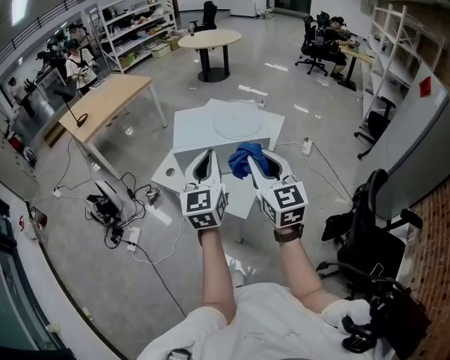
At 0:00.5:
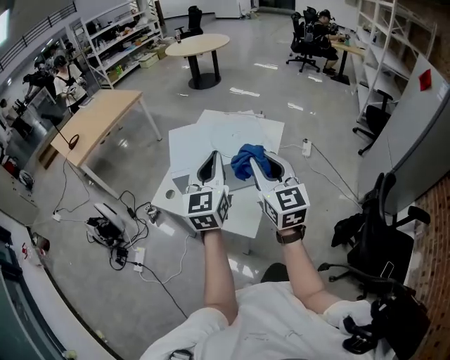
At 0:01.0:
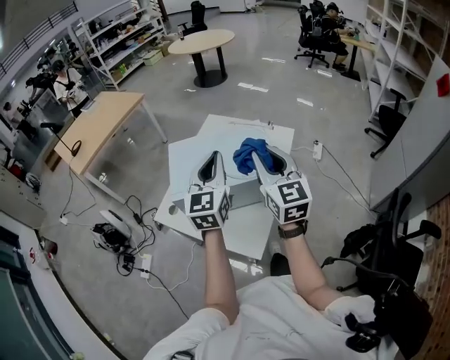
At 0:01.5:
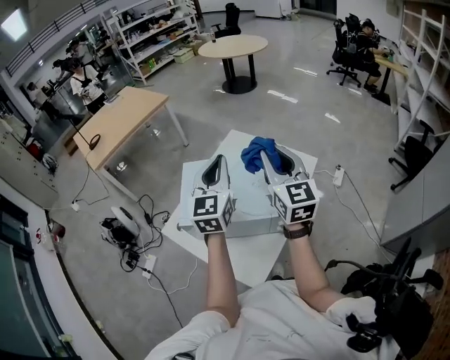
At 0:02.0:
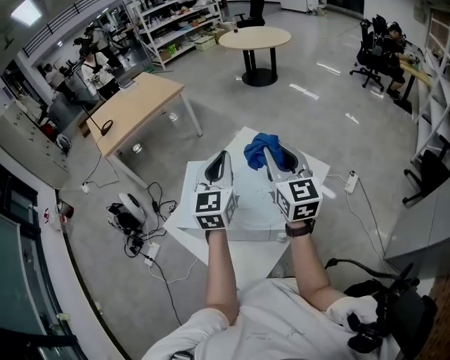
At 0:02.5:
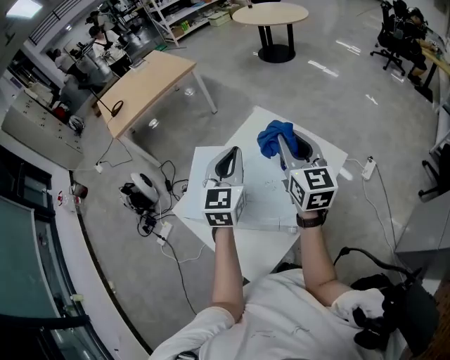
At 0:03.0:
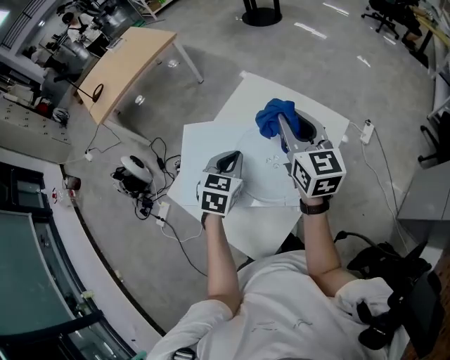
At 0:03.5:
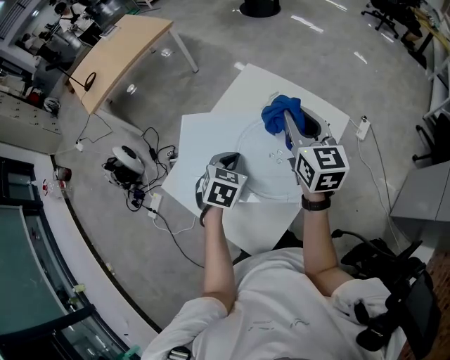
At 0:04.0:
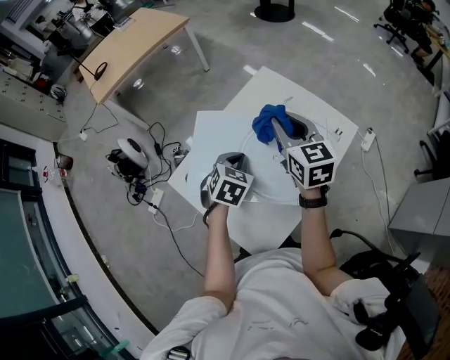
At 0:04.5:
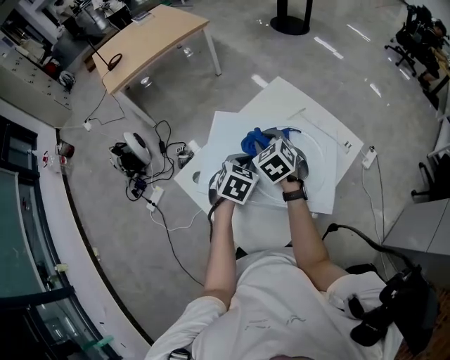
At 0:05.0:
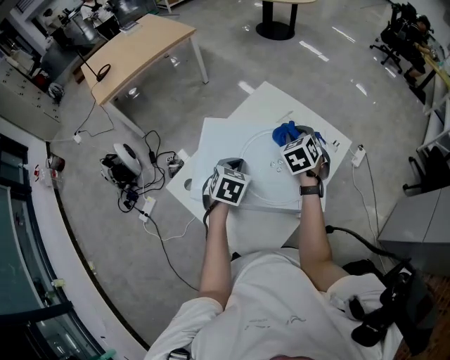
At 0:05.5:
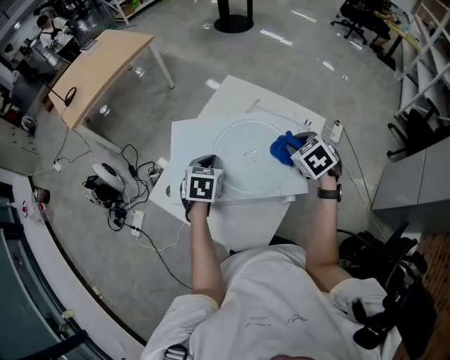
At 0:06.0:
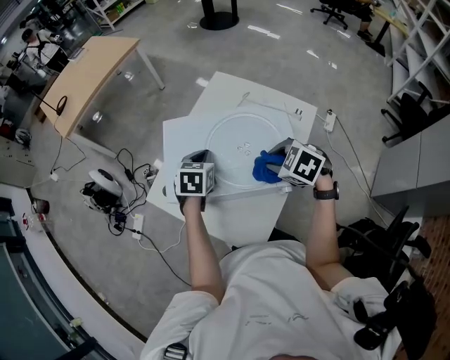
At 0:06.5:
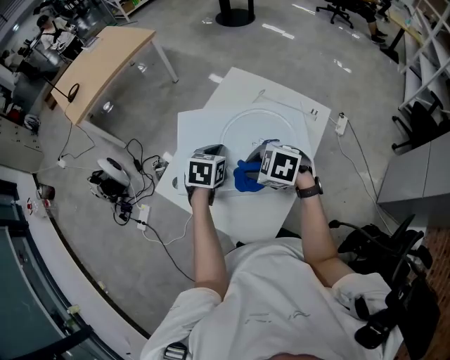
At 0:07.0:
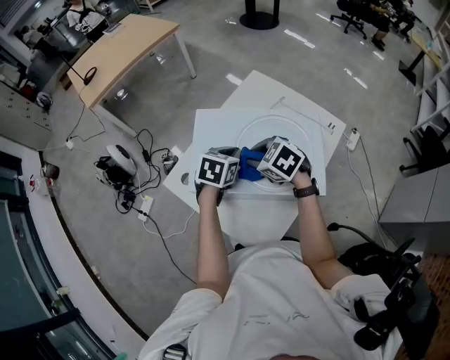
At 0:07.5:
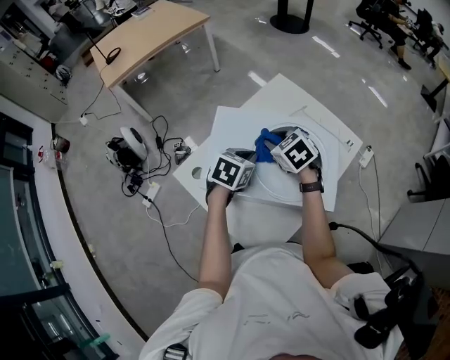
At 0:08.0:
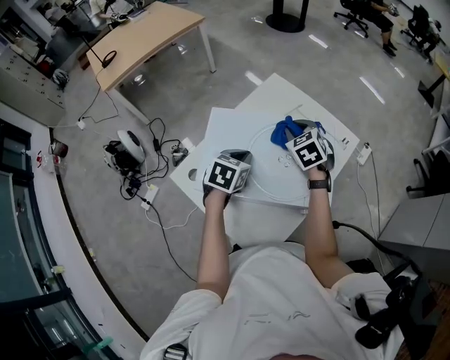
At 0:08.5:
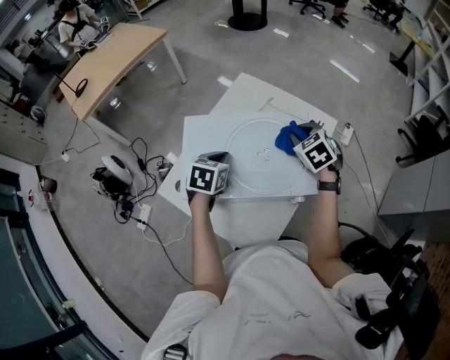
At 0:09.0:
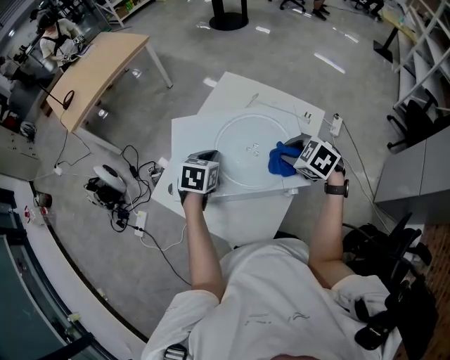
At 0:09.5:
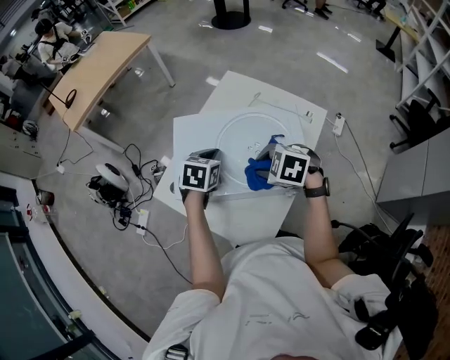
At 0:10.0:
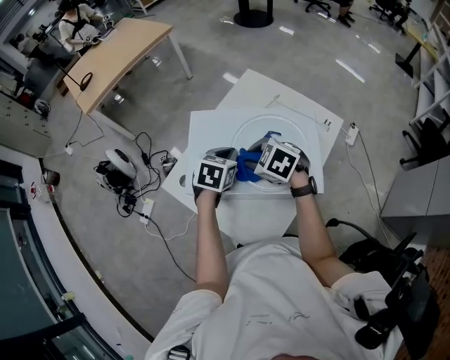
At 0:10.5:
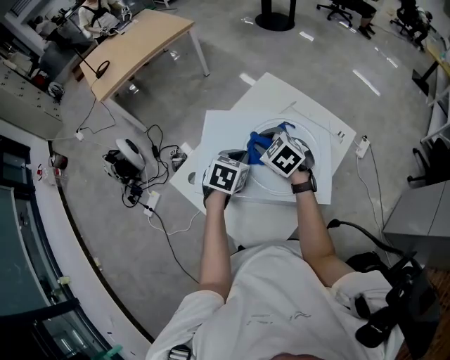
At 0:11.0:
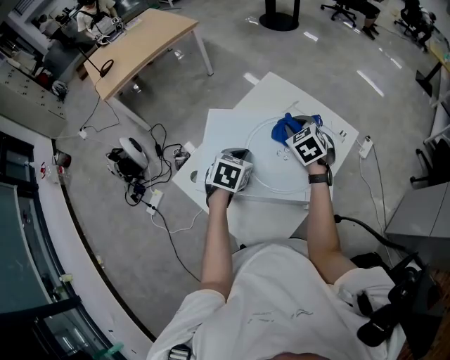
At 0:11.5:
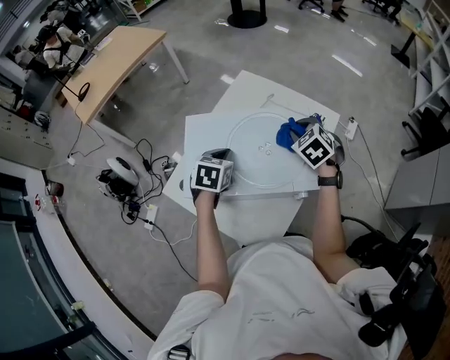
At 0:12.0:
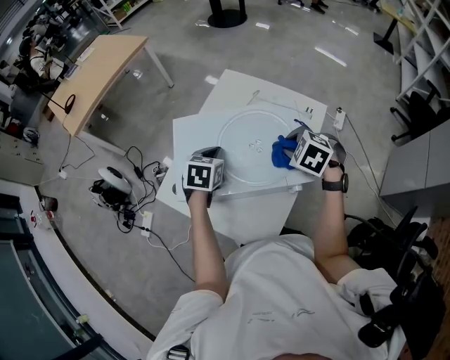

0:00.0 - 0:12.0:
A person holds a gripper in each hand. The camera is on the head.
0:00.0 - 0:02.0: The two grippers go approximately 35 cm forward.
0:02.0 - 0:04.0: The right gripper shifts roughly 15 cm downward, to the left and forward, and rotates approximately 20 degrees. The left gripper moves downward, roughly 25 cm, and angles its fingers downward, by about 50 degrees.
0:04.0 - 0:06.0: The right gripper moves left and right over approximately 20 cm, changing direction 2 times, and tilts its fingers roughly 40 degrees downward.
0:06.0 - 0:08.0: The right gripper shifts by approximately 20 cm, and swivels approximately 30 degrees.
0:08.0 - 0:10.0: The right gripper ends up some 15 cm from where it was, and swivels about 30 degrees.
0:10.0 - 0:12.0: The right gripper is displaced to the right by some 15 cm, and changes its angle by roughly 20 degrees.

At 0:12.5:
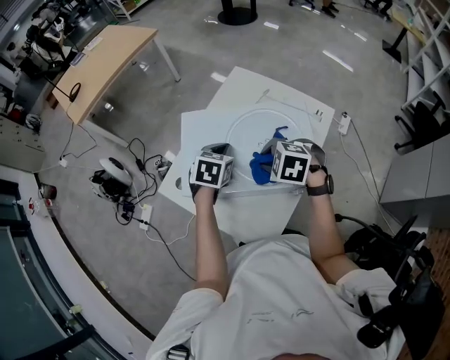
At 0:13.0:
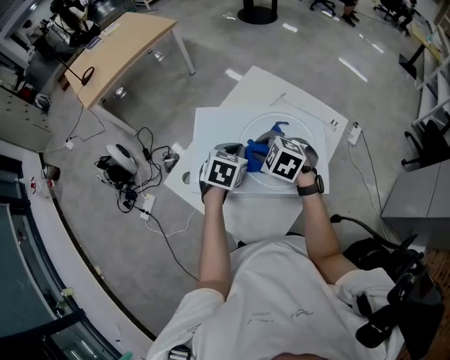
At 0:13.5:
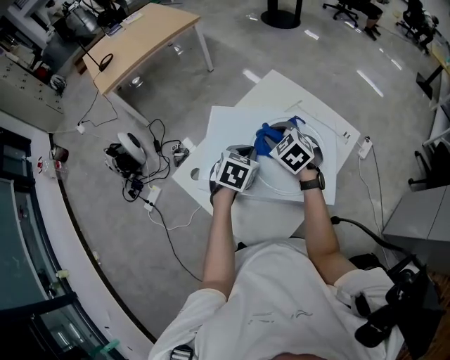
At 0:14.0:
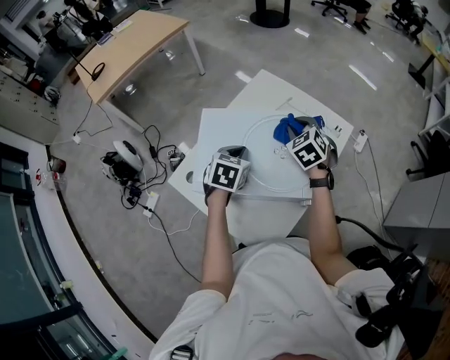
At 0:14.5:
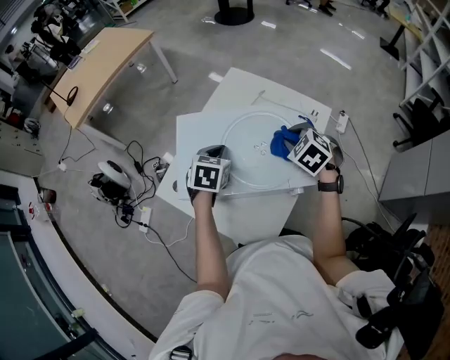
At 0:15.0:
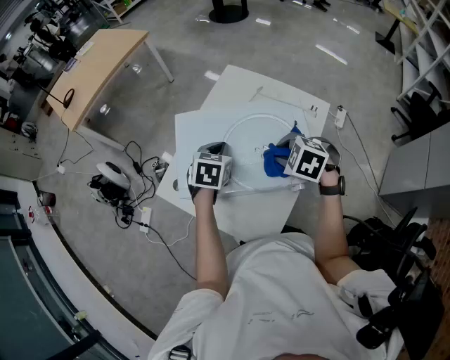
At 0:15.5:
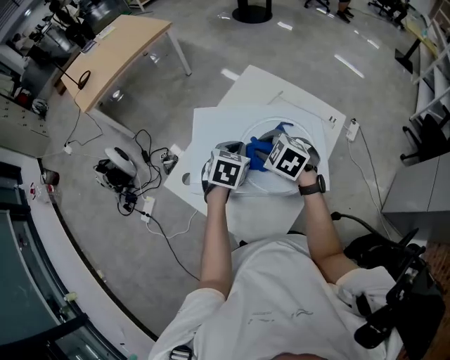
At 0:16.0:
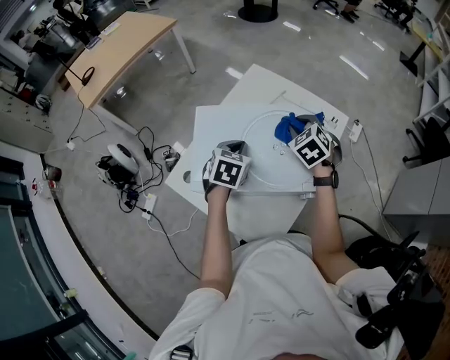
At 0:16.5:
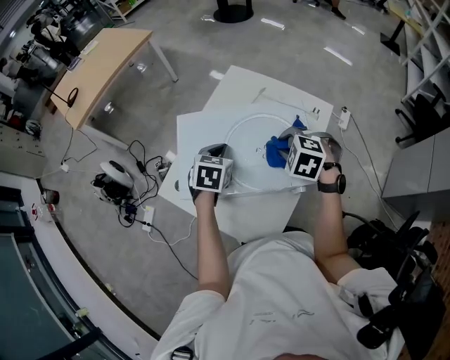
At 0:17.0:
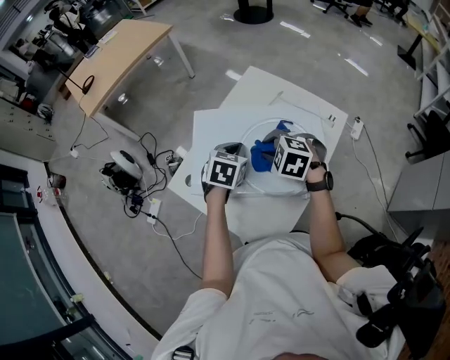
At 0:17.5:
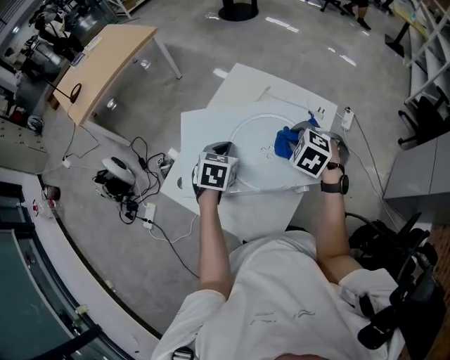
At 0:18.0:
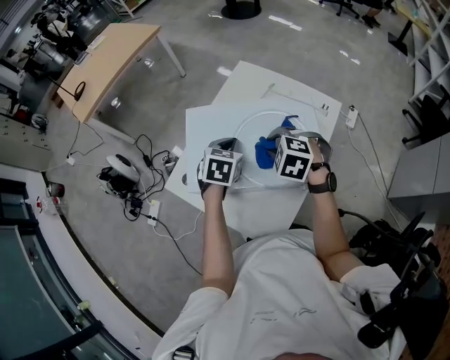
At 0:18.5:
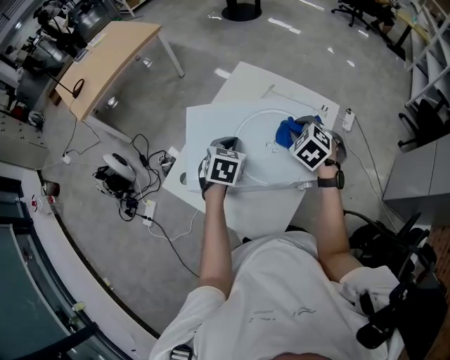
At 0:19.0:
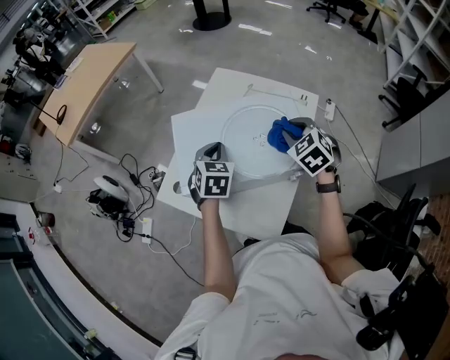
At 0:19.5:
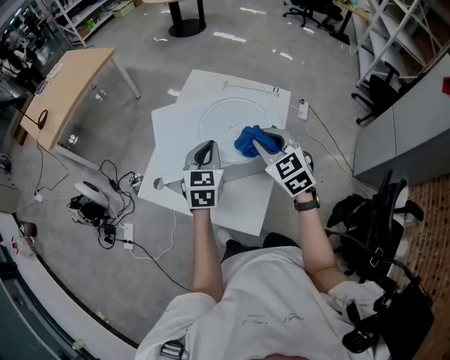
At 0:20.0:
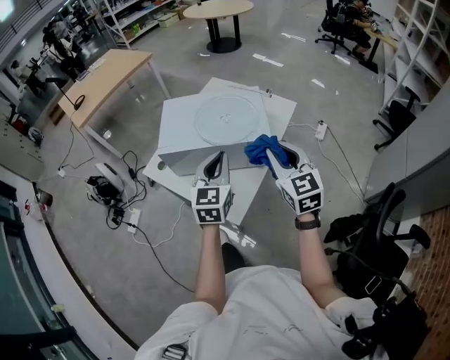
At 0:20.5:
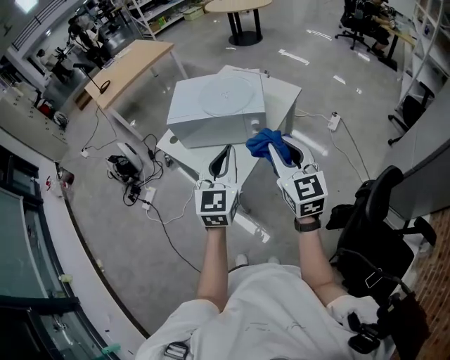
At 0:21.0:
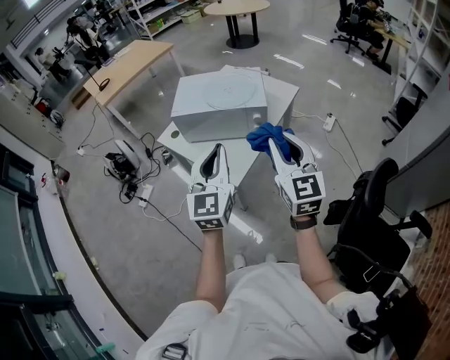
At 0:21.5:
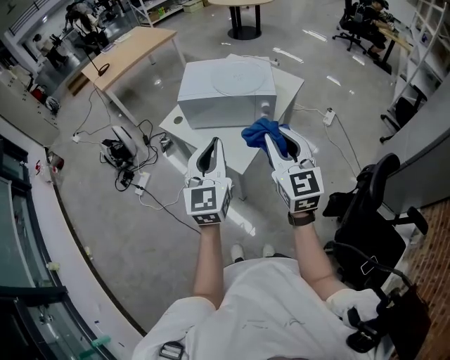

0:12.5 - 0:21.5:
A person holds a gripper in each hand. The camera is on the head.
0:12.5 - 0:14.5: The right gripper moves to the right and forward, some 15 cm, and swivels roughly 30 degrees.
0:14.5 - 0:17.0: The right gripper goes left and right, roughly 15 cm each way, reversing 2 times, and turns by about 30 degrees.
0:17.0 - 0:19.5: The right gripper swings left and right, about 15 cm each way, with 3 reversals, and rotates some 50 degrees. The left gripper goes about 10 cm backward and upward, and turns by roughly 20 degrees.
0:19.5 - 0:21.5: The grippers both shift backward by some 35 cm. The right gripper turns by some 30 degrees. Meanwhile the left gripper rotates about 30 degrees.

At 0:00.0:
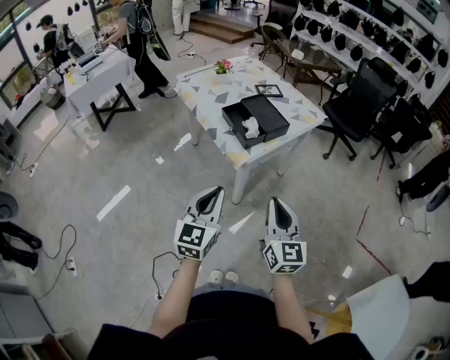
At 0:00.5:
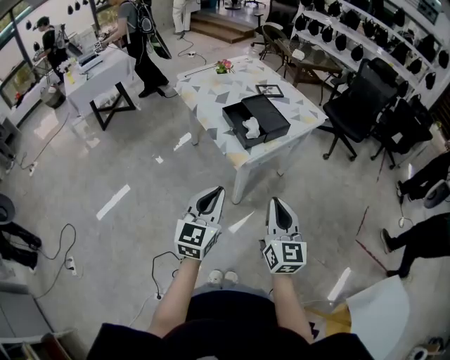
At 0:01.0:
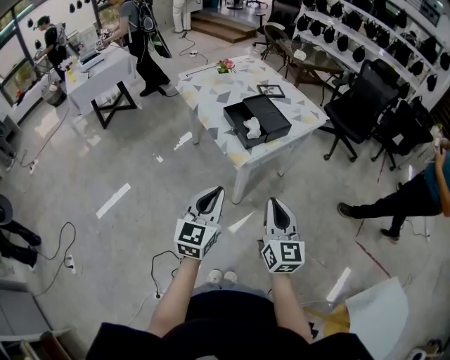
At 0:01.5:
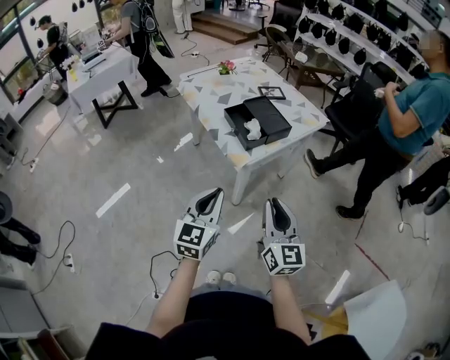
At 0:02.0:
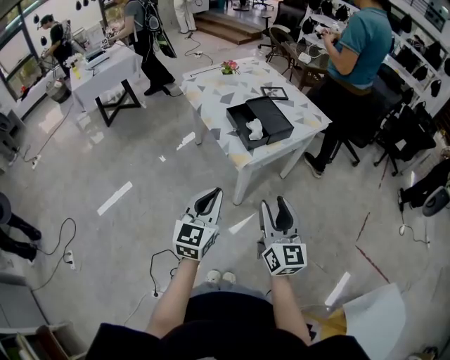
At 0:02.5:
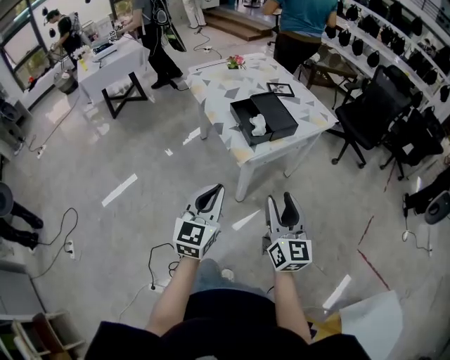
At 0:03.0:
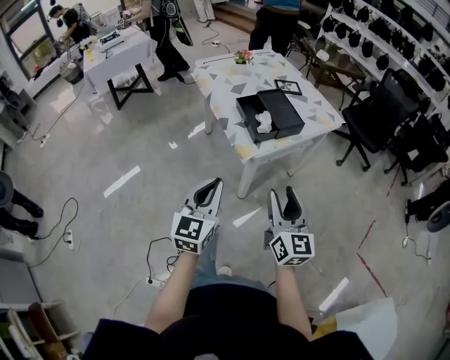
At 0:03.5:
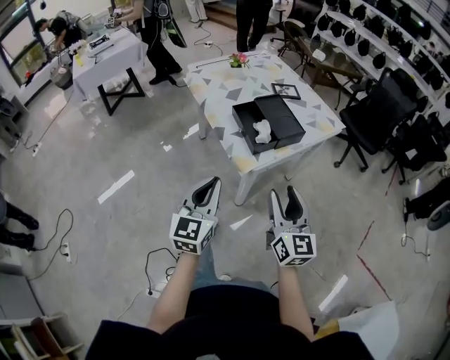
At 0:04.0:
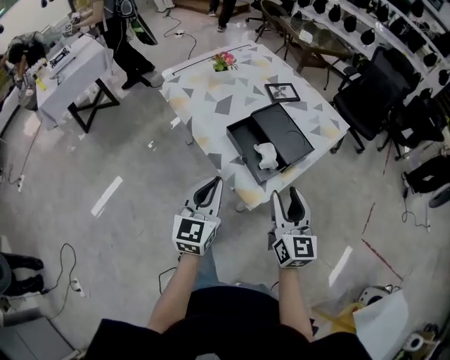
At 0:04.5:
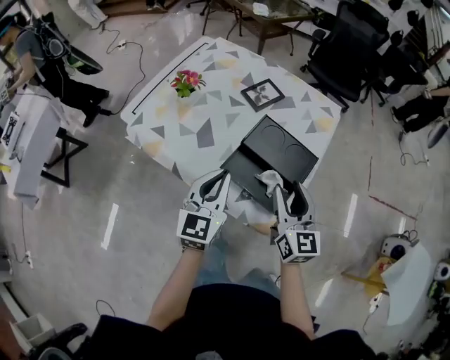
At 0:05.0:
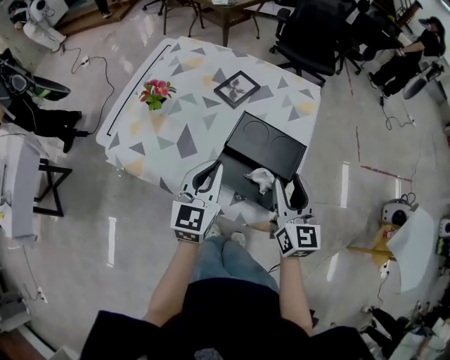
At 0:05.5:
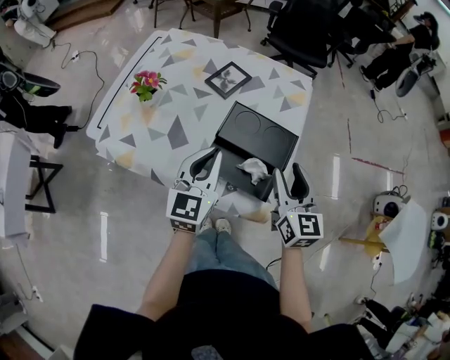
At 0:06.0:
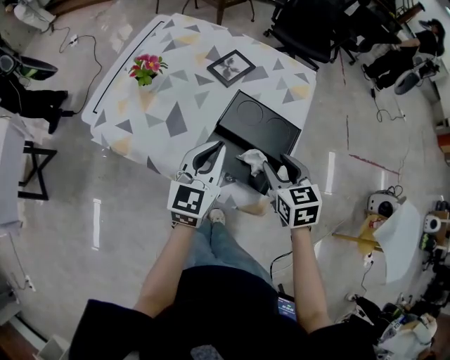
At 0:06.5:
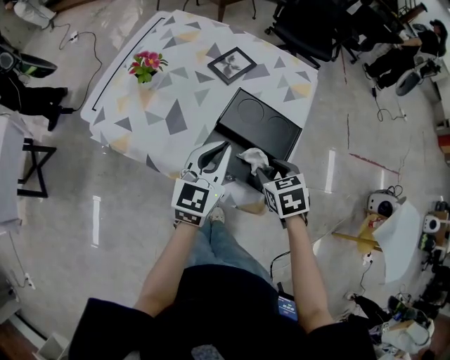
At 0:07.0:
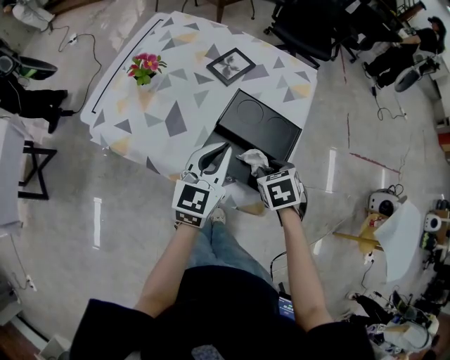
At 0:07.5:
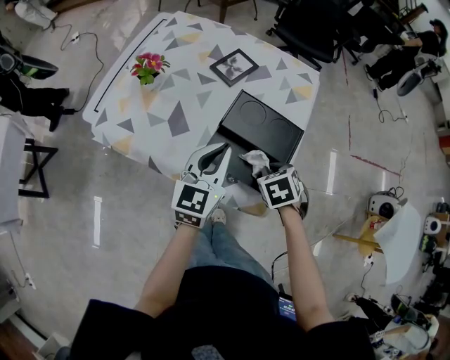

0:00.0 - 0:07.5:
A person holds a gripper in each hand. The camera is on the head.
0:00.0 - 0:02.0: The right gripper opens its fingers.
0:02.0 - 0:04.0: Both grippers move forward, roughly 25 cm.
0:04.0 - 0:05.5: The left gripper changes place by roughly 25 cm, and rotates some 40 degrees; the right gripper shifts by some 15 cm, and changes its angle by some 30 degrees.
0:05.5 - 0:07.5: The right gripper shifts about 15 cm downward, points its fingers about 50 degrees further downward, and closes its fingers.
